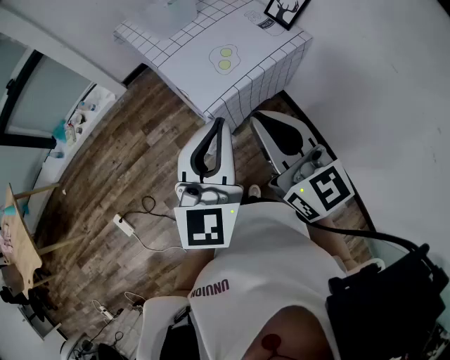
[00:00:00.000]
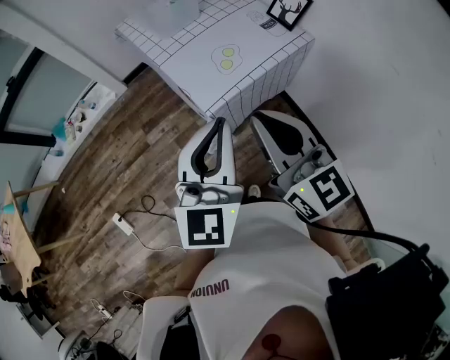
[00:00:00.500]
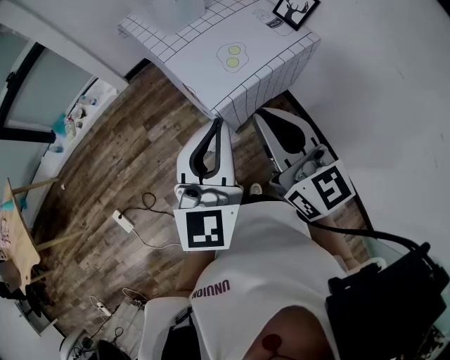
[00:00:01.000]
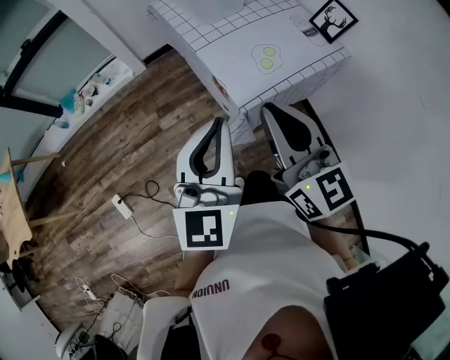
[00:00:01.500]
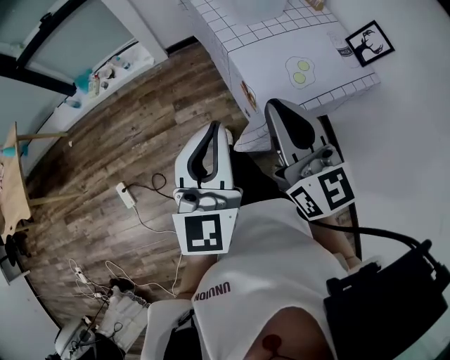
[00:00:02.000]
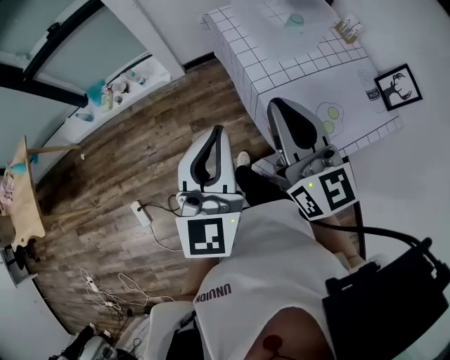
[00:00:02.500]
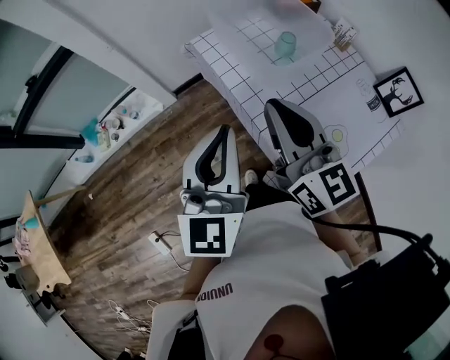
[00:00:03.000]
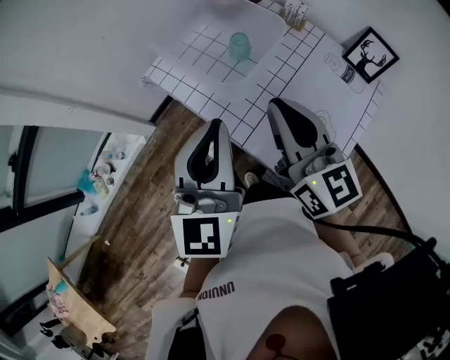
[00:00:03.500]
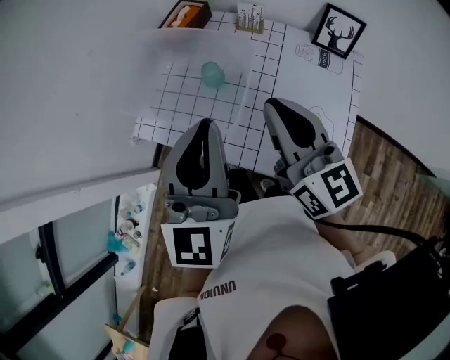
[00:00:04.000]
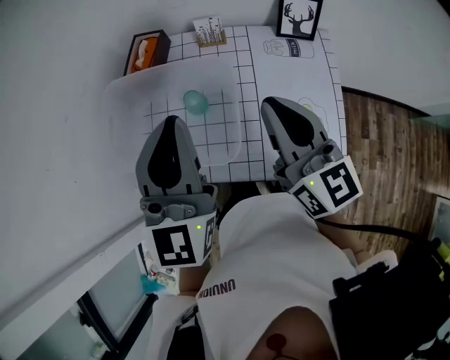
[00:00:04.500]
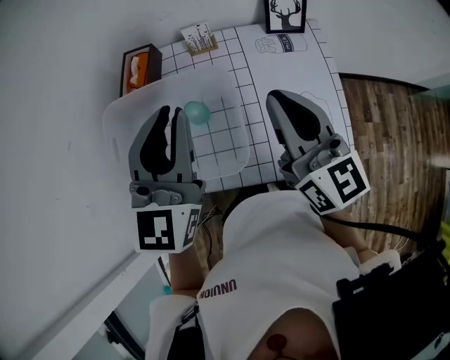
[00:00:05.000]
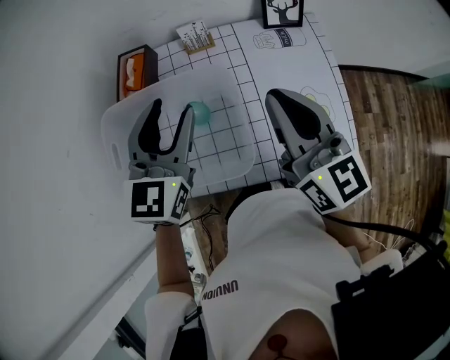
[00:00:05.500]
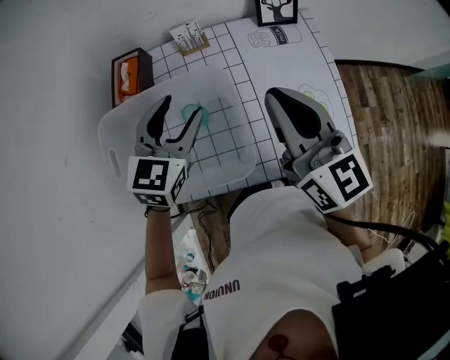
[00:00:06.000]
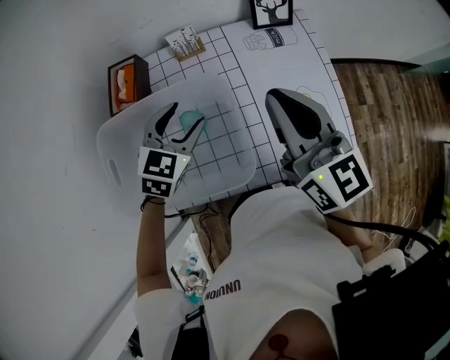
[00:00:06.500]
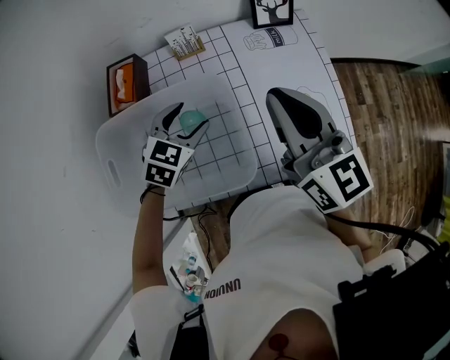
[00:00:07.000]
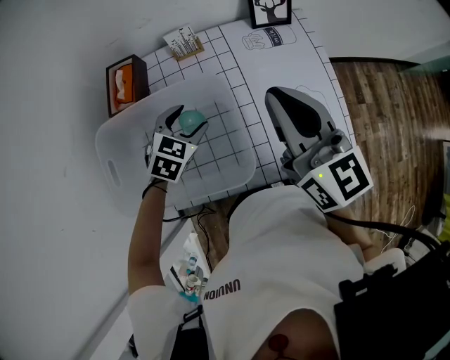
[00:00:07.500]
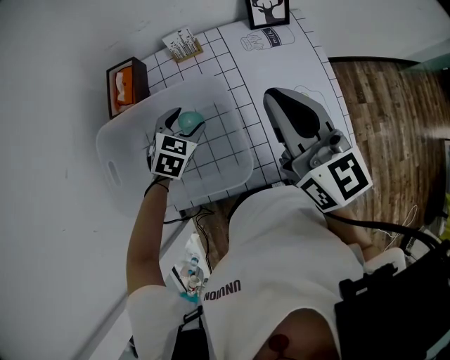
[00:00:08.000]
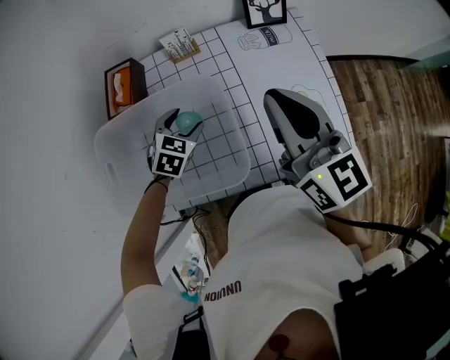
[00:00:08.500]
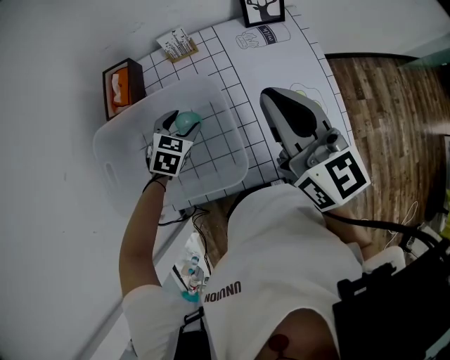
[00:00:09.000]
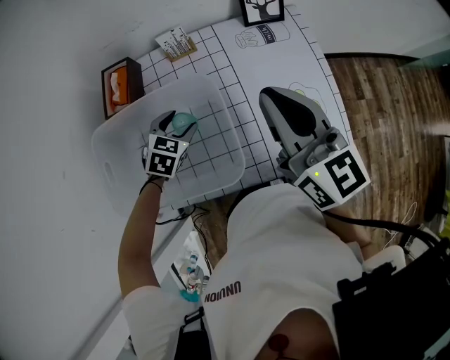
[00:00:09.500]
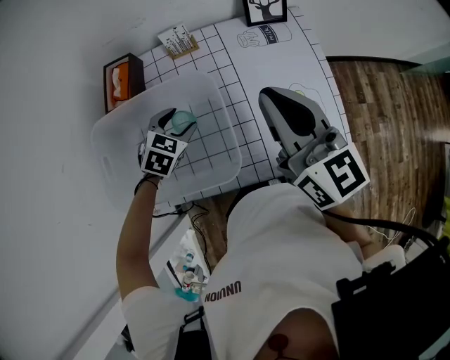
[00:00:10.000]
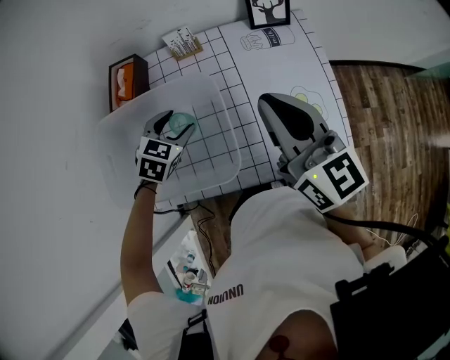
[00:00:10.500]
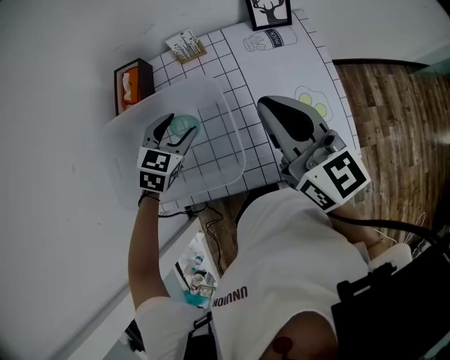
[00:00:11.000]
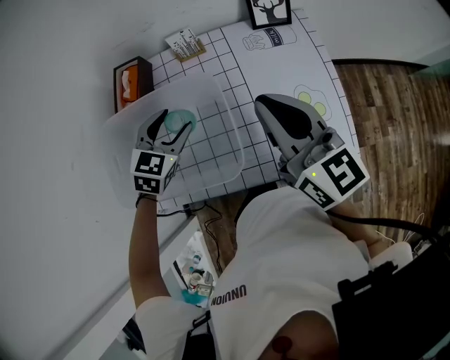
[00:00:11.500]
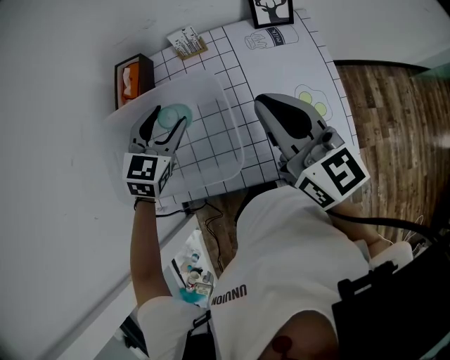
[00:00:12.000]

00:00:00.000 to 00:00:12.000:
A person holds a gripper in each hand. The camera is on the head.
00:00:00.000 to 00:00:02.000: The left gripper travels to the left and forward by roughly 20 cm. The right gripper shifts some 20 cm forward and to the left.
00:00:02.000 to 00:00:04.000: The left gripper shifts by about 50 cm, and changes its angle by some 50 degrees, while the right gripper shifts by roughly 40 cm, and changes its angle by about 40 degrees.
00:00:04.000 to 00:00:06.000: The right gripper moves roughly 5 cm, and swivels some 30 degrees. The left gripper moves approximately 25 cm, angles its fingers downward, by some 30 degrees, and opens.
00:00:06.000 to 00:00:08.000: The left gripper goes approximately 15 cm downward, and changes its angle by roughly 30 degrees.
00:00:08.000 to 00:00:10.000: The grippers stay close to where they were, moving slightly.
00:00:10.000 to 00:00:12.000: The left gripper heads upward, covering some 10 cm, and swivels approximately 20 degrees.

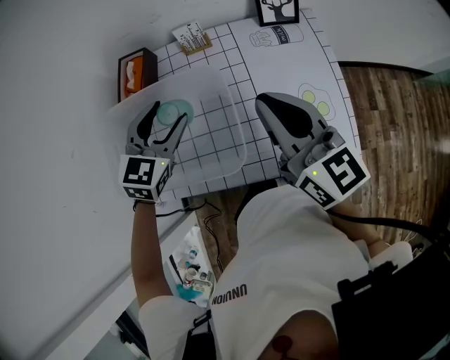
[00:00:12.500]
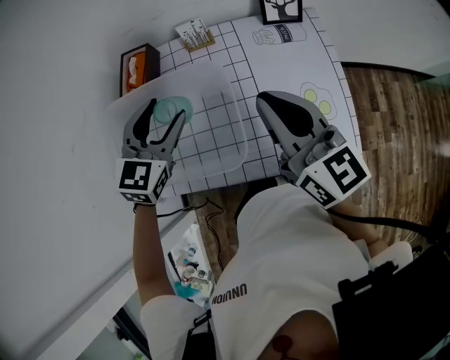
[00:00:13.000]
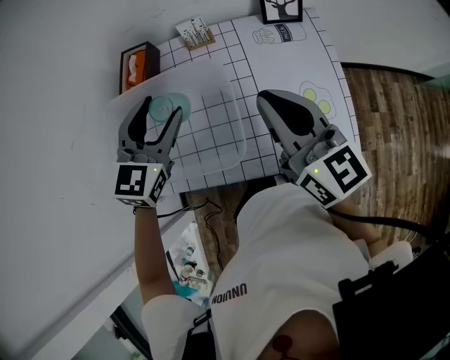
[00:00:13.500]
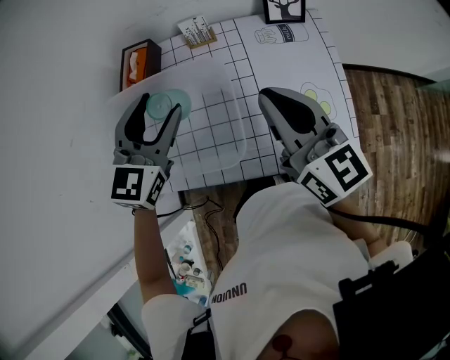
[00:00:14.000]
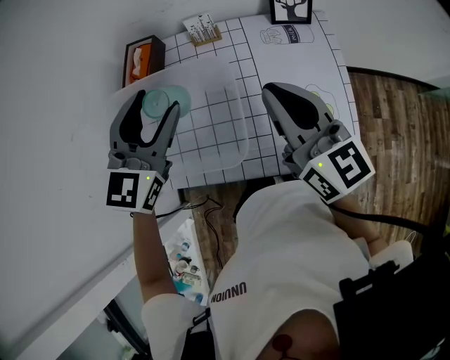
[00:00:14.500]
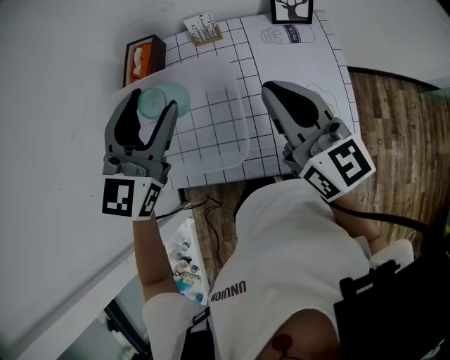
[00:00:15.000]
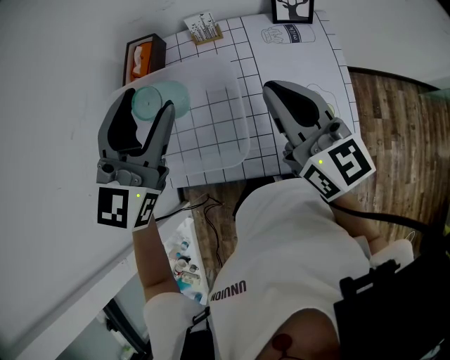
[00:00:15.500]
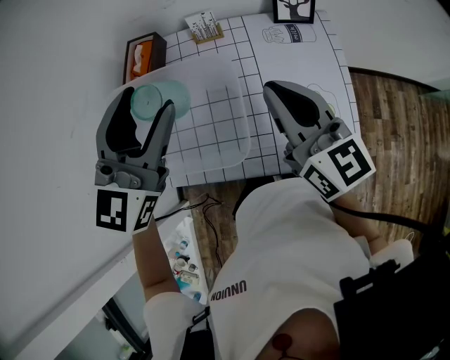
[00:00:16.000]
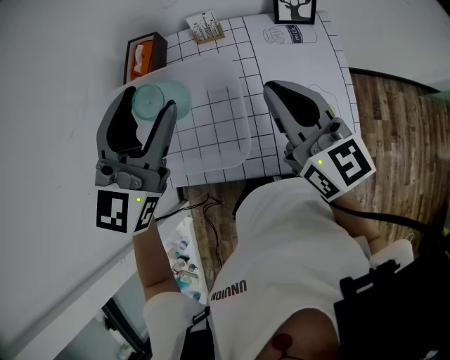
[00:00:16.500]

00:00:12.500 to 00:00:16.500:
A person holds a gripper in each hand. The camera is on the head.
00:00:12.500 to 00:00:14.500: The left gripper goes about 10 cm upward.
00:00:14.500 to 00:00:16.500: The left gripper shifts approximately 5 cm upward.

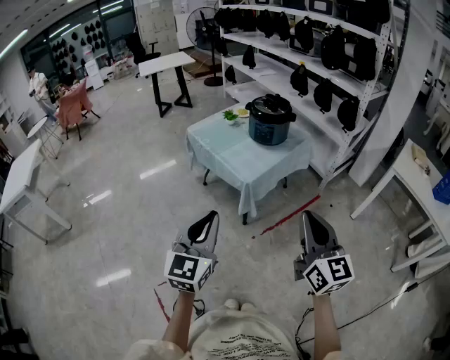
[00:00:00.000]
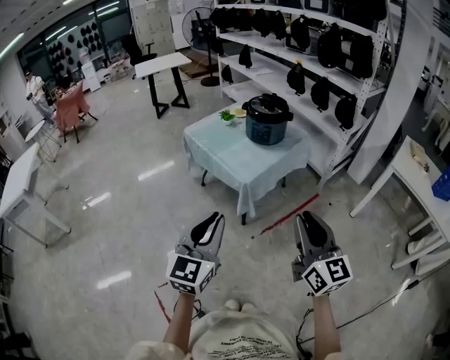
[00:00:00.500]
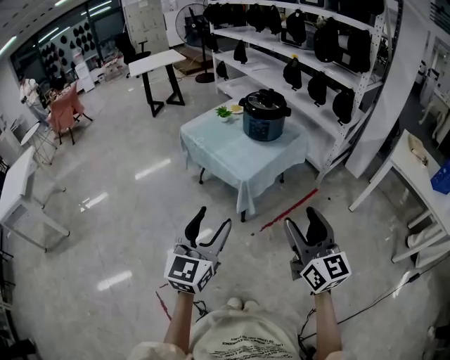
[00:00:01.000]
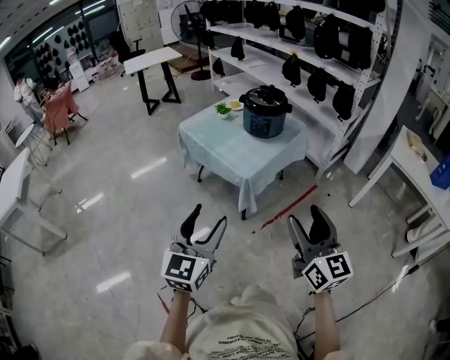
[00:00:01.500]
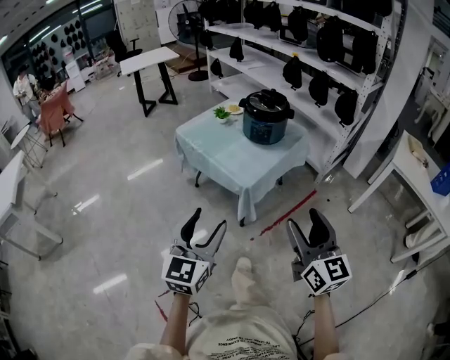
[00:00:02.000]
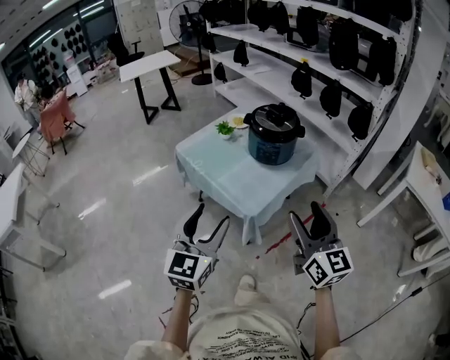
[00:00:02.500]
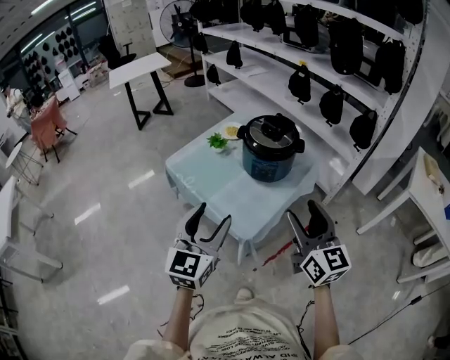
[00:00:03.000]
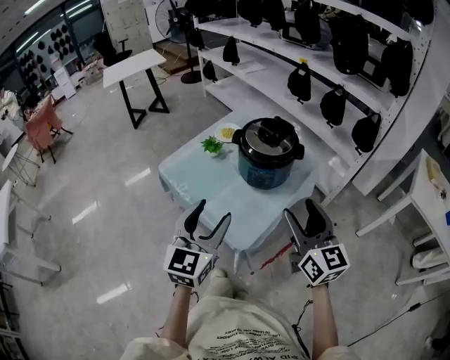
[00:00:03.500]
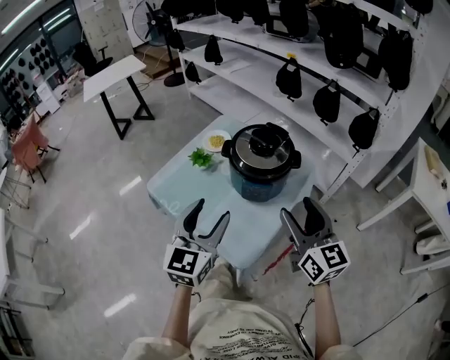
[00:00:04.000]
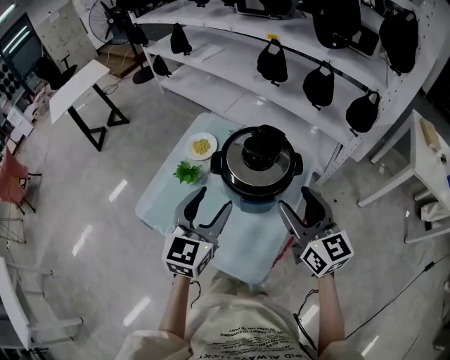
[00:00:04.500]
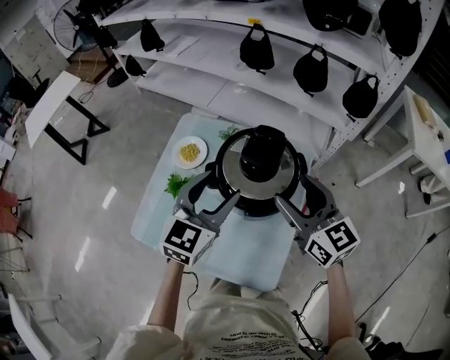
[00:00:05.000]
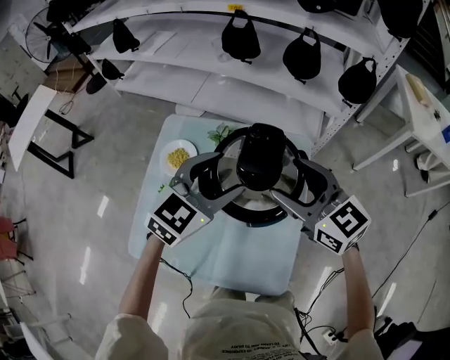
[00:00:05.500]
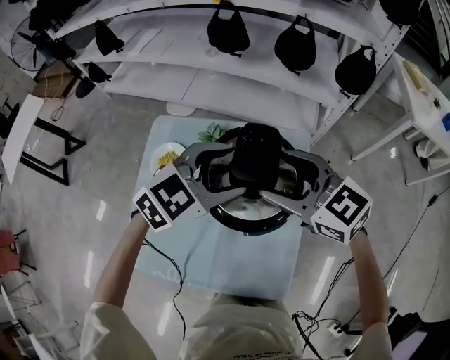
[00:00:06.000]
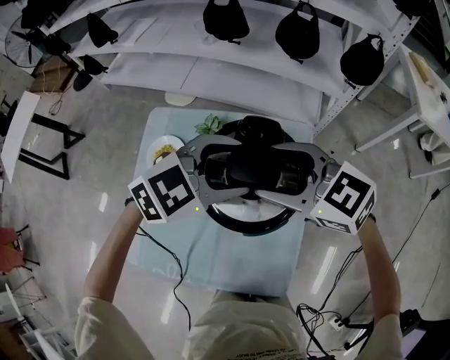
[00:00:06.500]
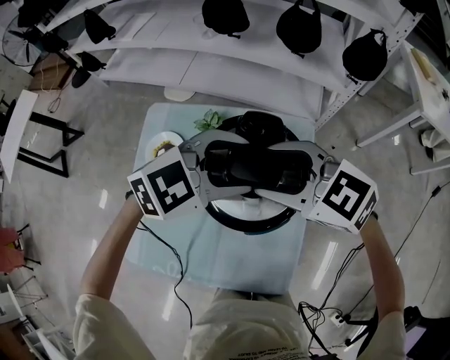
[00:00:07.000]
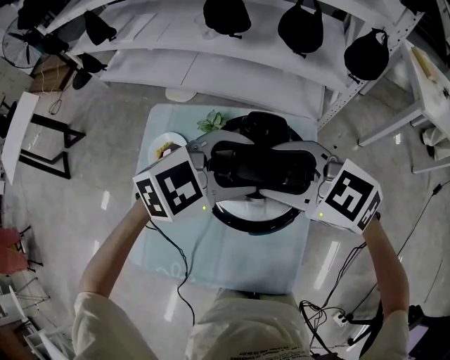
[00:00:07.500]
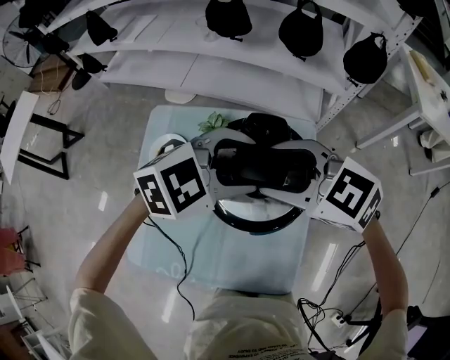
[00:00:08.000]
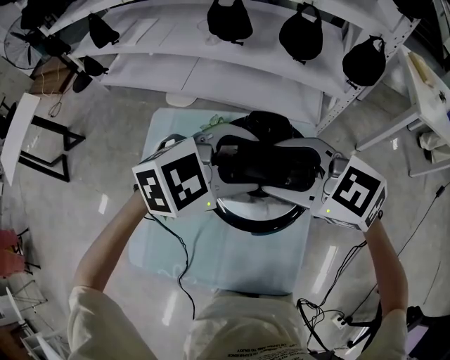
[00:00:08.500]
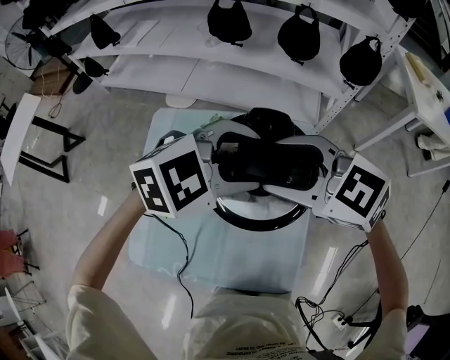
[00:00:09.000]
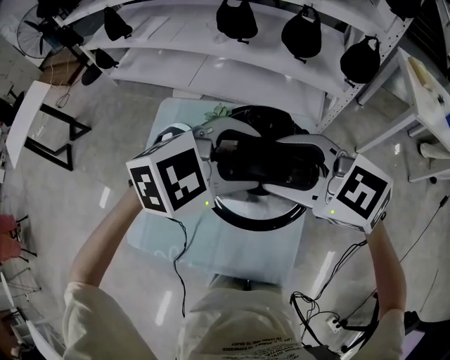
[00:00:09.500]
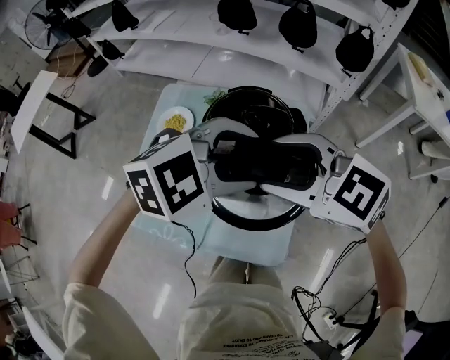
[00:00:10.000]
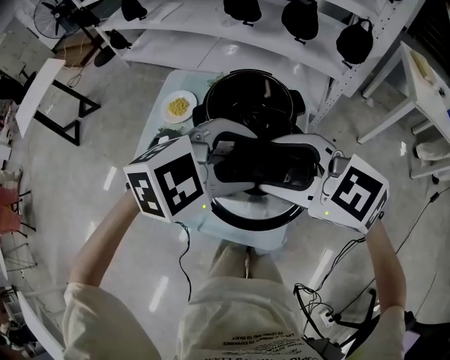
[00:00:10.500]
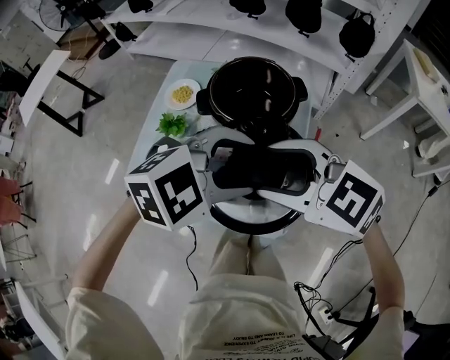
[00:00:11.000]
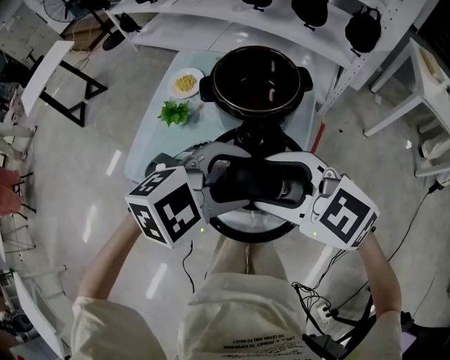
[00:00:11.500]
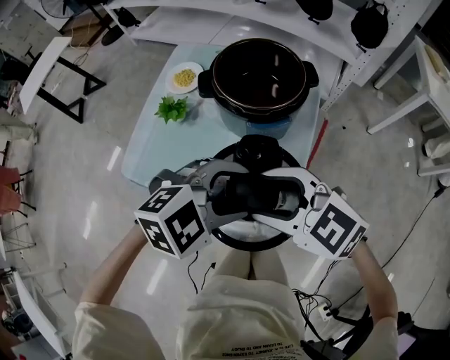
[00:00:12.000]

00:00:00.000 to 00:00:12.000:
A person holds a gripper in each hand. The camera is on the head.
00:00:00.000 to 00:00:02.000: The grippers both shift forward by approximately 5 cm. The left gripper opens up. Meanwhile the right gripper opens up.
00:00:02.000 to 00:00:04.000: The grippers both shift forward by about 40 cm.
00:00:04.000 to 00:00:06.000: The right gripper changes place by approximately 25 cm, and swivels roughly 20 degrees. Meanwhile the left gripper shifts by approximately 30 cm, and changes its angle by roughly 80 degrees.
00:00:06.000 to 00:00:08.000: The grippers stay close to where they were, moving slightly.
00:00:08.000 to 00:00:10.000: The left gripper ends up roughly 15 cm from where it was. The right gripper moves some 15 cm.
00:00:10.000 to 00:00:12.000: The right gripper shifts by roughly 20 cm, while the left gripper changes place by approximately 20 cm.
